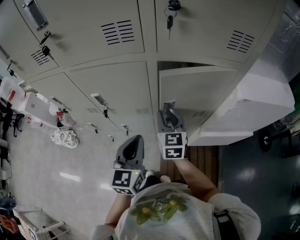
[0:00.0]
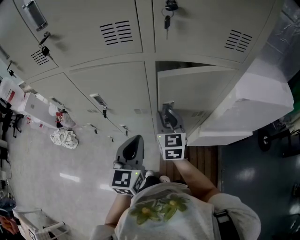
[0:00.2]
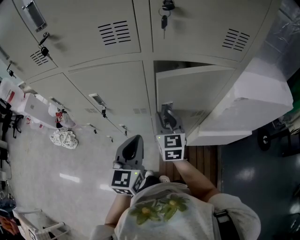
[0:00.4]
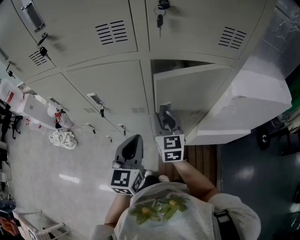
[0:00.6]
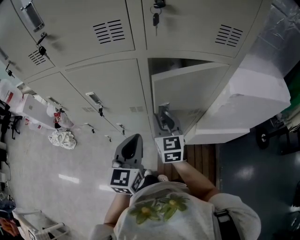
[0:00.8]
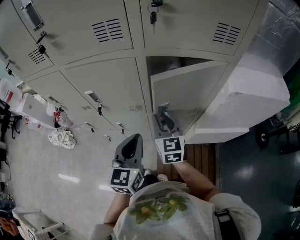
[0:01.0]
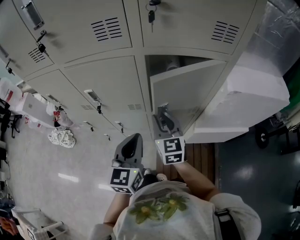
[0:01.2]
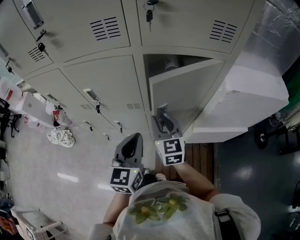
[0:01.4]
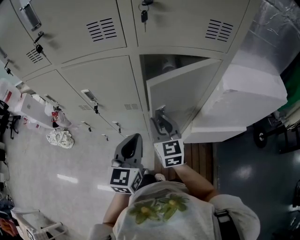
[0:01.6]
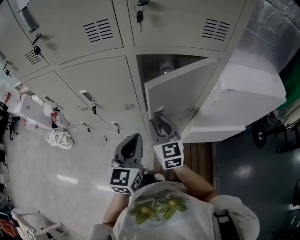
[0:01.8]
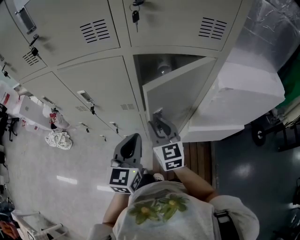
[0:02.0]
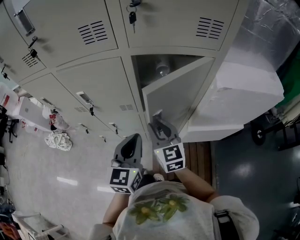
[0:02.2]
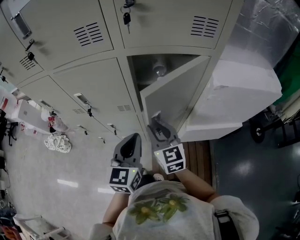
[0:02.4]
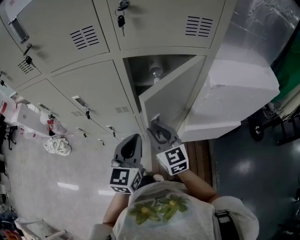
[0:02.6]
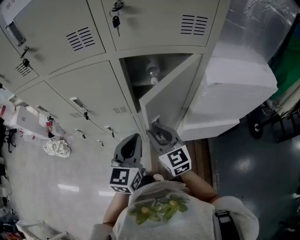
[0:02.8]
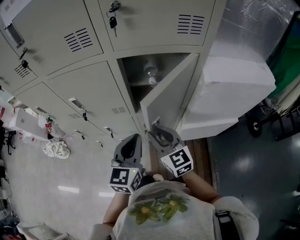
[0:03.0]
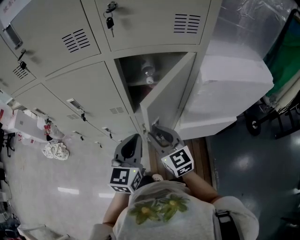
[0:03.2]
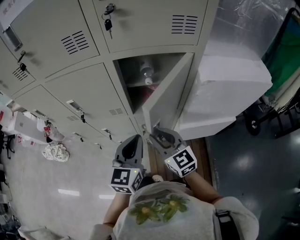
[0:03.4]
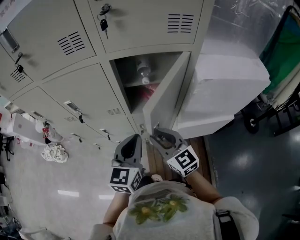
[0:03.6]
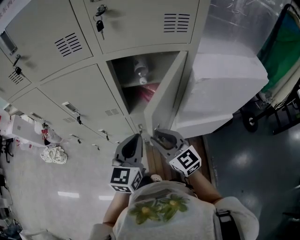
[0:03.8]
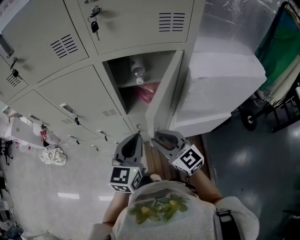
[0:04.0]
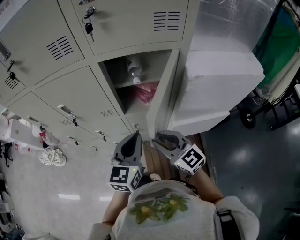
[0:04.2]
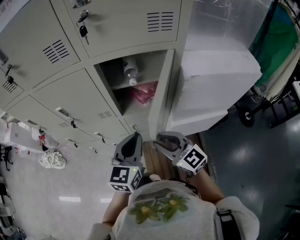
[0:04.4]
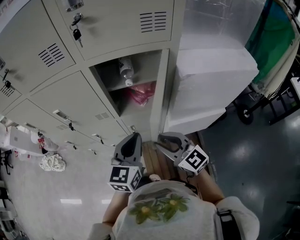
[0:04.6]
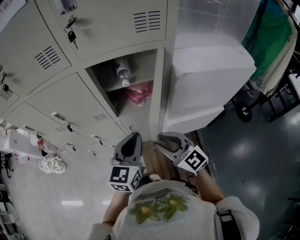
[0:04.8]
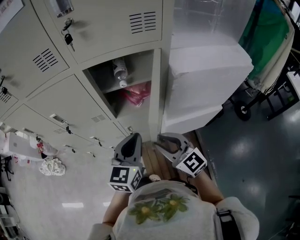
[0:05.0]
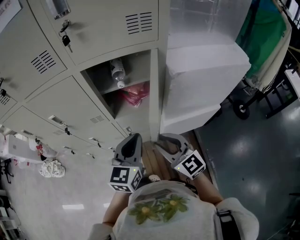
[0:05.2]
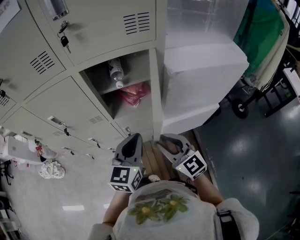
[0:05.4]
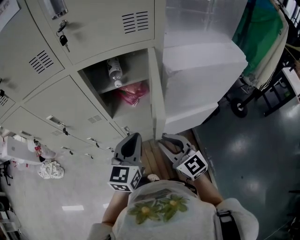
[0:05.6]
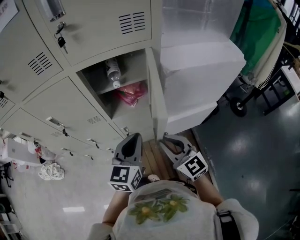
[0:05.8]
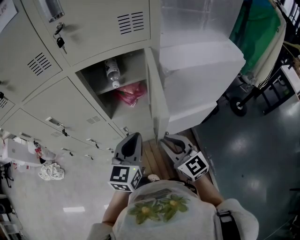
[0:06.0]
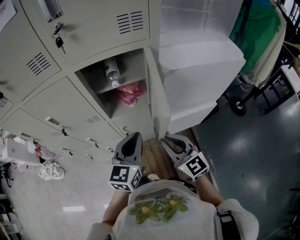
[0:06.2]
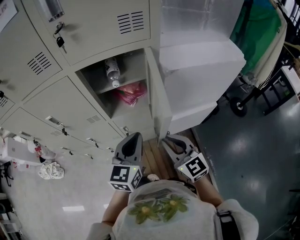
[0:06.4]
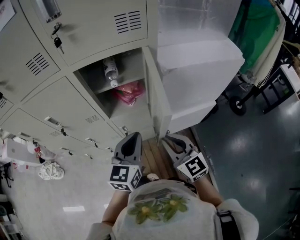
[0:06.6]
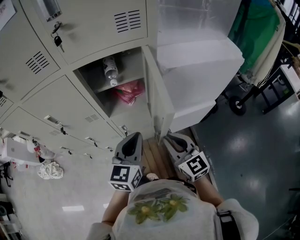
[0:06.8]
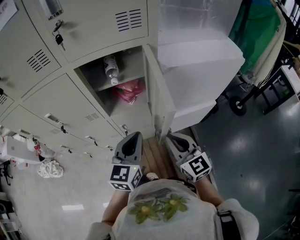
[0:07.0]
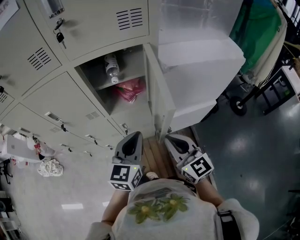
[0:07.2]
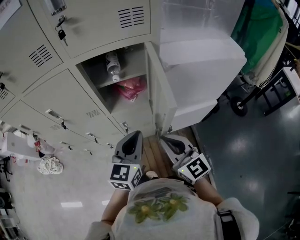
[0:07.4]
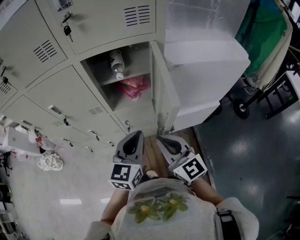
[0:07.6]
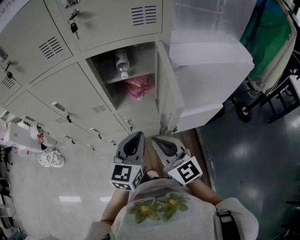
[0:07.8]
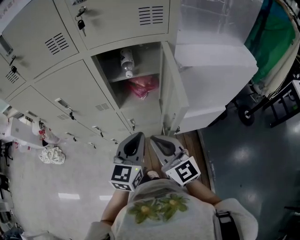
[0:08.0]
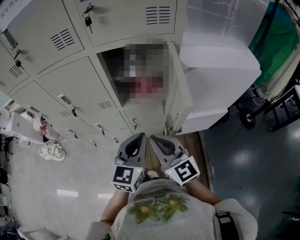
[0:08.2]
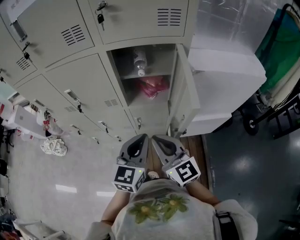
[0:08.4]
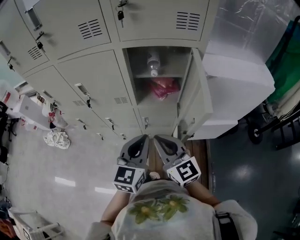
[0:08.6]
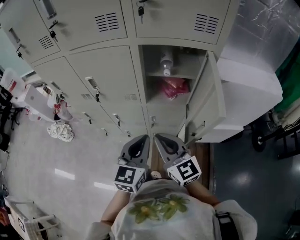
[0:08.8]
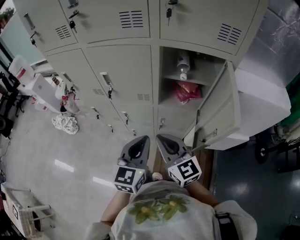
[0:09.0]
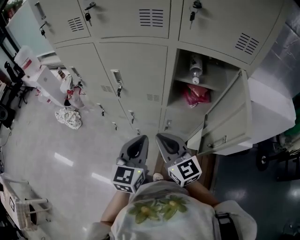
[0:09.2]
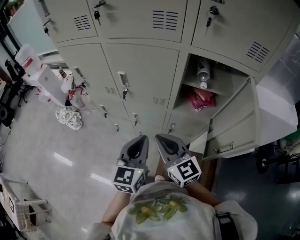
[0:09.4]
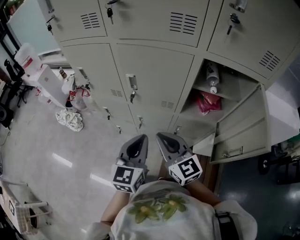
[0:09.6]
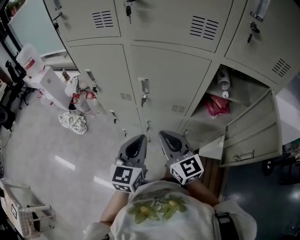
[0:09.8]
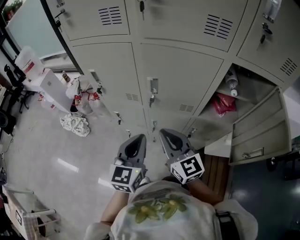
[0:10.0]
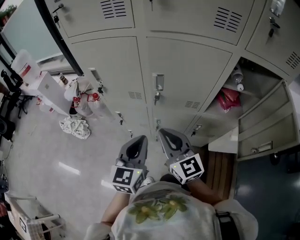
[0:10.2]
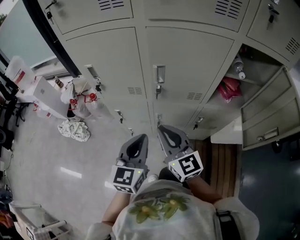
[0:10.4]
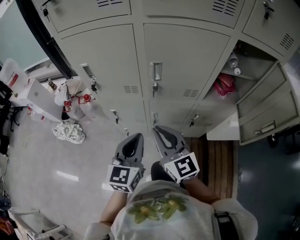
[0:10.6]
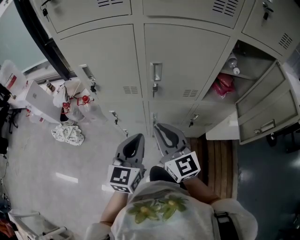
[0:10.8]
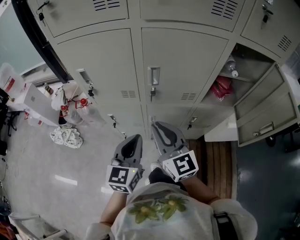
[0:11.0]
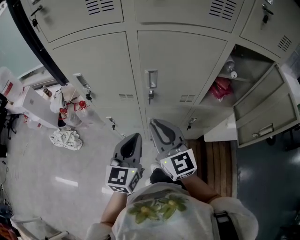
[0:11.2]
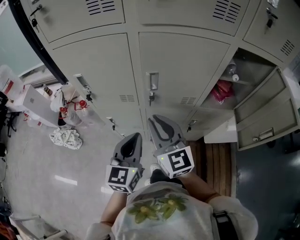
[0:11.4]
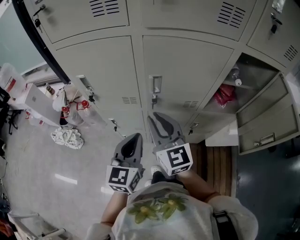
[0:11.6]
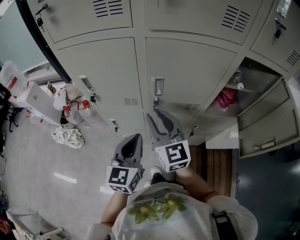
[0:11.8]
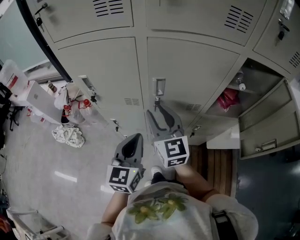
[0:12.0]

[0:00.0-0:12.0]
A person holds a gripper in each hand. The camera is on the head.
0:00.0 to 0:01.6: The left gripper changes place by approximately 5 cm; the right gripper travels backward by approximately 5 cm.
0:01.6 to 0:03.0: The right gripper travels backward by about 5 cm.
0:03.0 to 0:04.4: The right gripper is displaced backward and to the right by some 10 cm, while the left gripper heads to the right, covering approximately 5 cm.
0:04.4 to 0:06.0: The right gripper goes roughly 5 cm to the right.
0:06.0 to 0:07.6: There are only small adjustments of the grippers.
0:07.6 to 0:09.0: Both grippers move to the left, some 15 cm. The left gripper changes its angle by approximately 20 degrees.
0:09.0 to 0:10.4: The two grippers go approximately 30 cm to the left and forward.
0:10.4 to 0:12.0: The left gripper travels forward by about 5 cm. The right gripper is displaced forward by approximately 10 cm, and opens up.

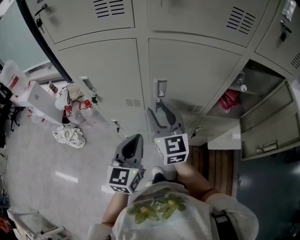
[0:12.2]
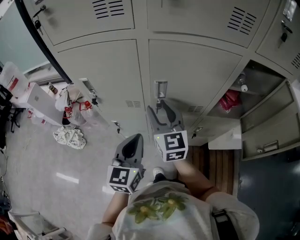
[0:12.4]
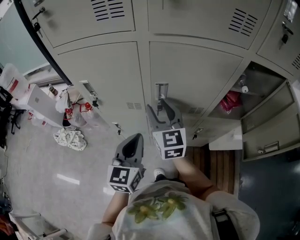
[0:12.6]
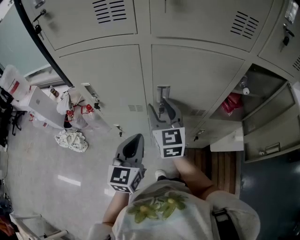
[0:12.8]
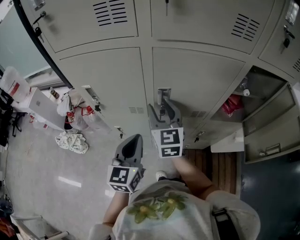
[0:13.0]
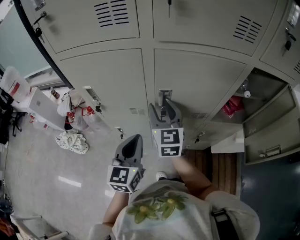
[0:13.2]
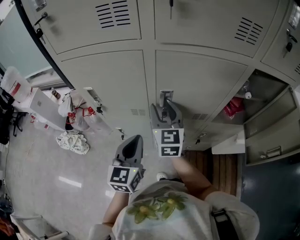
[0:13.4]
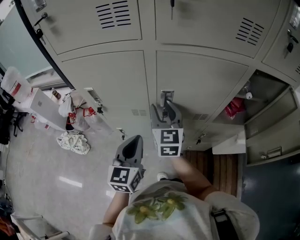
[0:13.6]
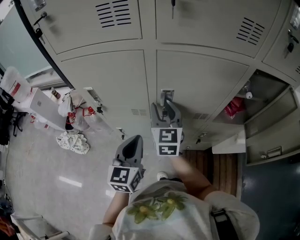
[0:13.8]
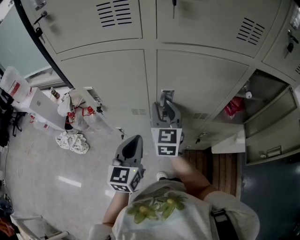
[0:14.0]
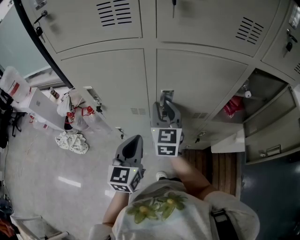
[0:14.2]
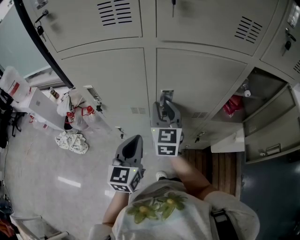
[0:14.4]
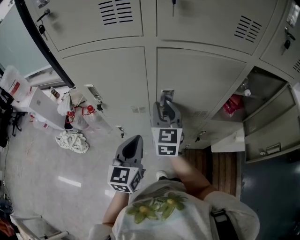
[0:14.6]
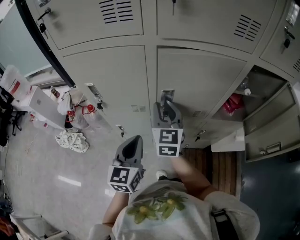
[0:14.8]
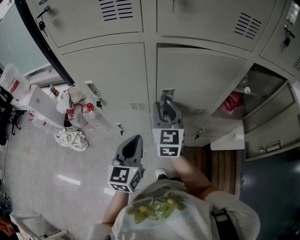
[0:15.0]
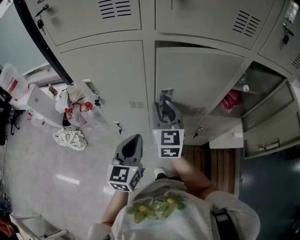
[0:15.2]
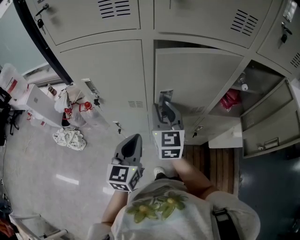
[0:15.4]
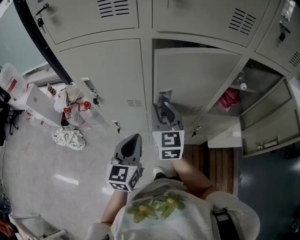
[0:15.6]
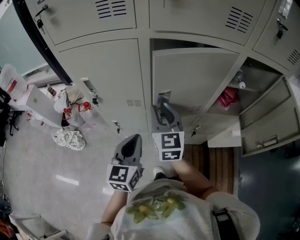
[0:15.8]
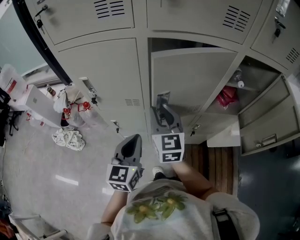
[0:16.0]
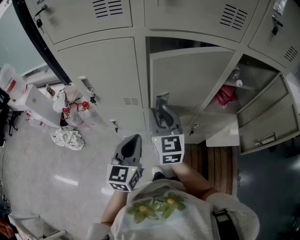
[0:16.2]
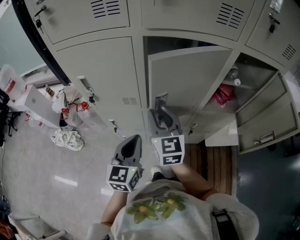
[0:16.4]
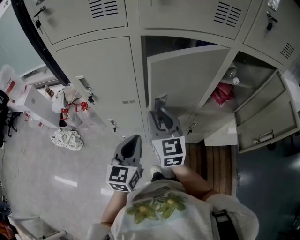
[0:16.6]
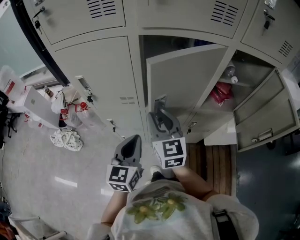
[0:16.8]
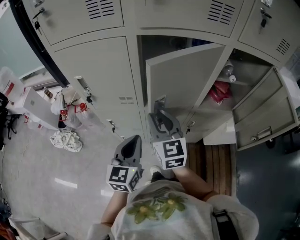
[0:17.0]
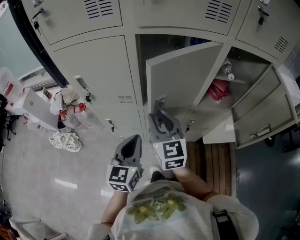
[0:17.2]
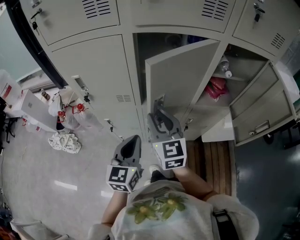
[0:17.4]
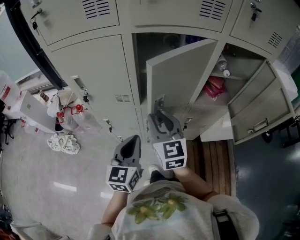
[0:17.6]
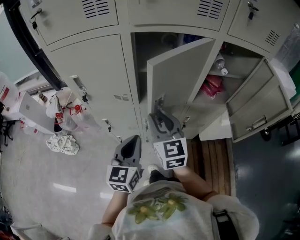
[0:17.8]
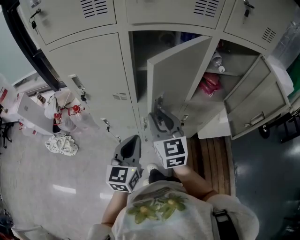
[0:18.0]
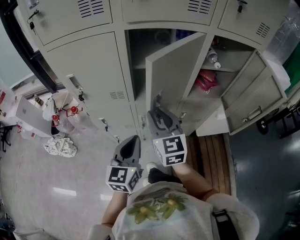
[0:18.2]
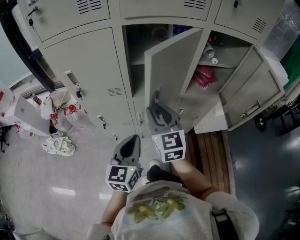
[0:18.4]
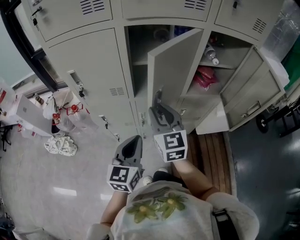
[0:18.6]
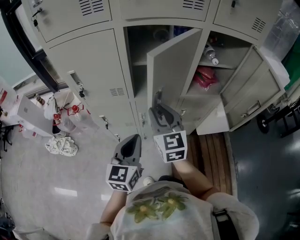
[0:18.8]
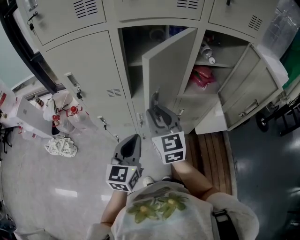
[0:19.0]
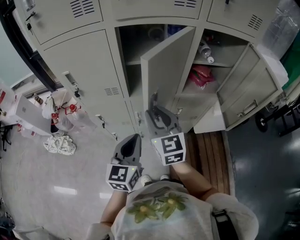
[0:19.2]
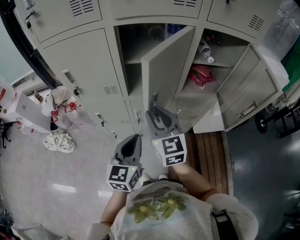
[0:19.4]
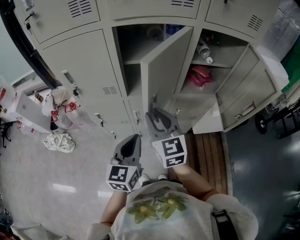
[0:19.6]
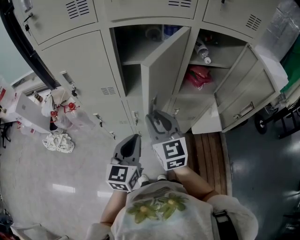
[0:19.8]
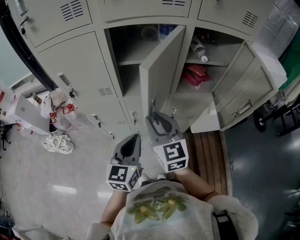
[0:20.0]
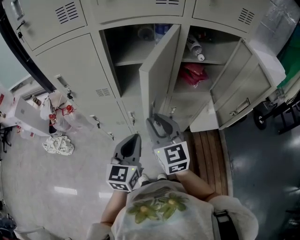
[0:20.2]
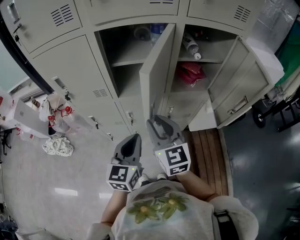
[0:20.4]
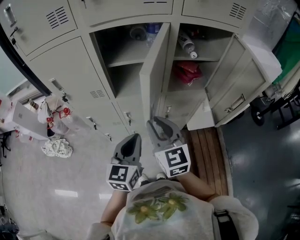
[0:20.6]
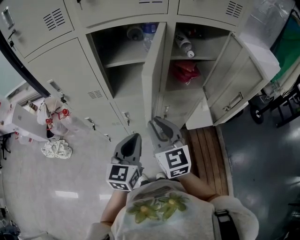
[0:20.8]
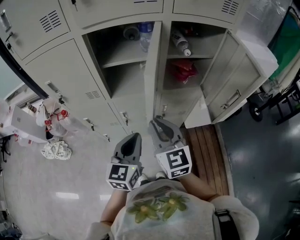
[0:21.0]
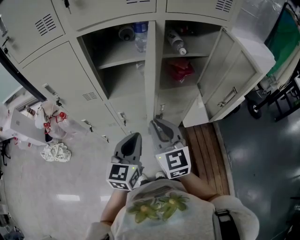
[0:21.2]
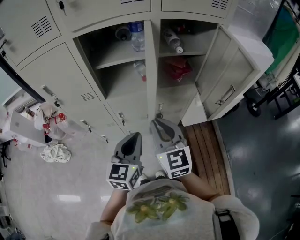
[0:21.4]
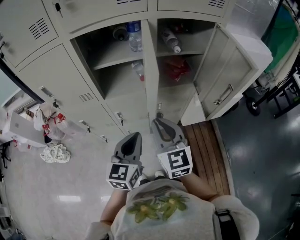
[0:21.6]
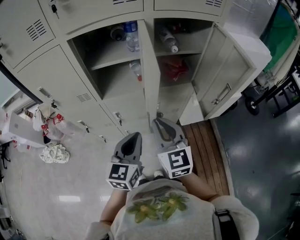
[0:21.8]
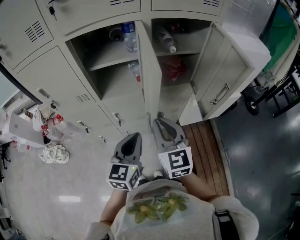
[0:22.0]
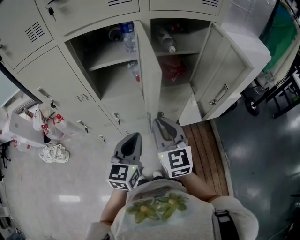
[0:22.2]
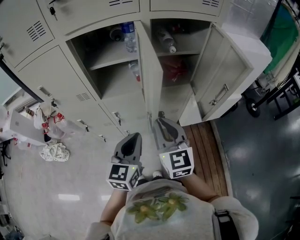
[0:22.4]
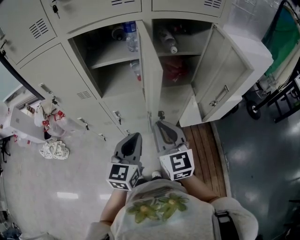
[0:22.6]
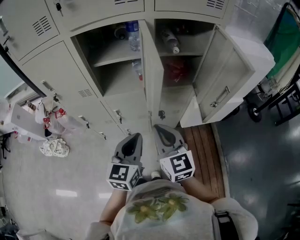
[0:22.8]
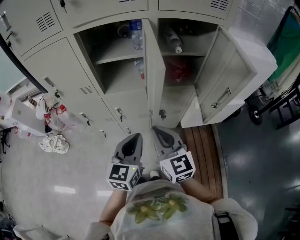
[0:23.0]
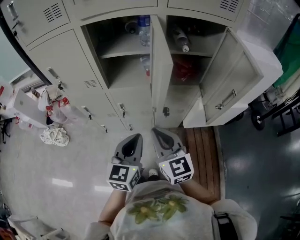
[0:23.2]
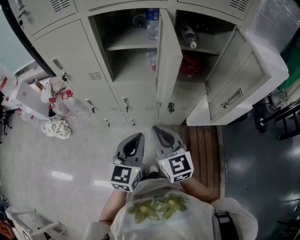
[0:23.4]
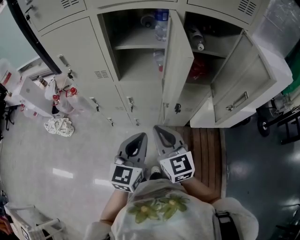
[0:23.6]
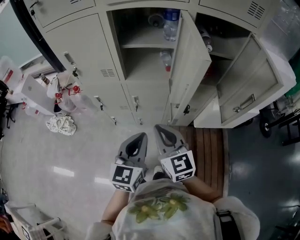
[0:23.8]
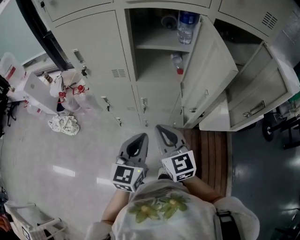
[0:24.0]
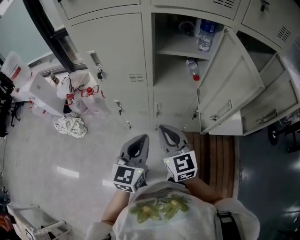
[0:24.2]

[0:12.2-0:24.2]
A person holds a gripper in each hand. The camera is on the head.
0:12.2 to 0:13.8: The right gripper is displaced forward by approximately 5 cm.
0:13.8 to 0:15.2: The grippers move only a little.
0:15.2 to 0:16.6: The right gripper is displaced backward by about 5 cm.
0:16.6 to 0:18.2: The right gripper is displaced backward by roughly 5 cm; the left gripper ends up approximately 5 cm from where it was.
0:18.2 to 0:19.8: The left gripper travels to the right by some 5 cm. The right gripper moves about 5 cm.
0:19.8 to 0:21.2: Both grippers move to the right, about 10 cm.
0:21.2 to 0:22.6: The right gripper shifts about 5 cm to the right.
0:22.6 to 0:24.2: The two grippers go some 20 cm to the left.
